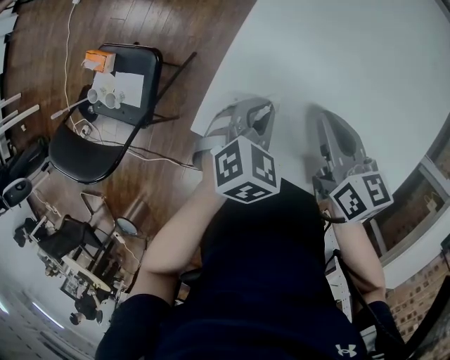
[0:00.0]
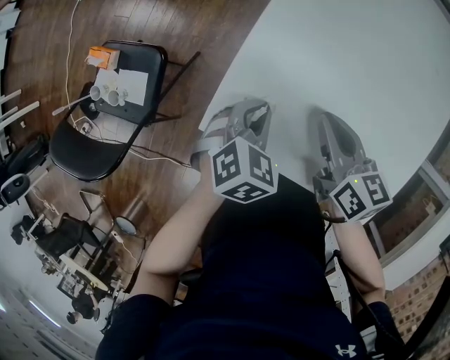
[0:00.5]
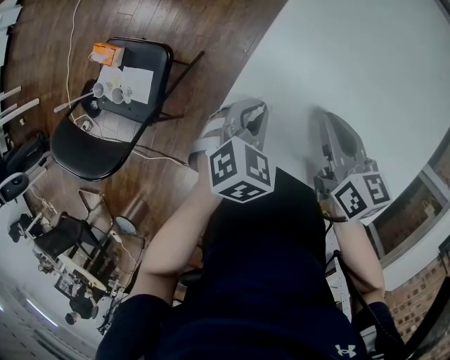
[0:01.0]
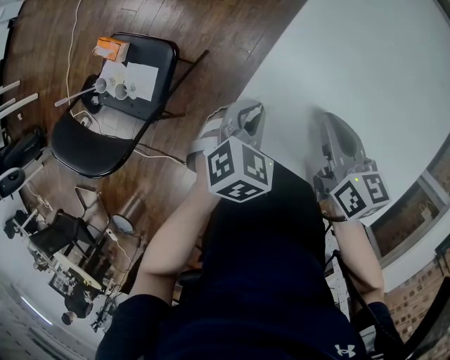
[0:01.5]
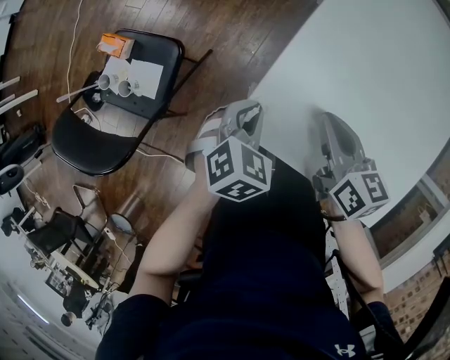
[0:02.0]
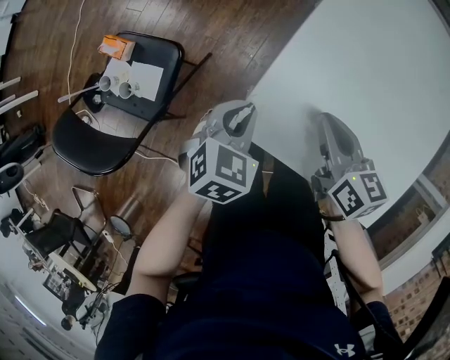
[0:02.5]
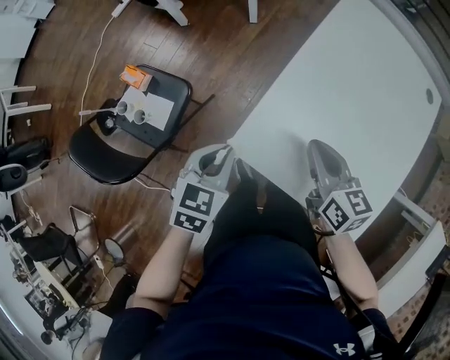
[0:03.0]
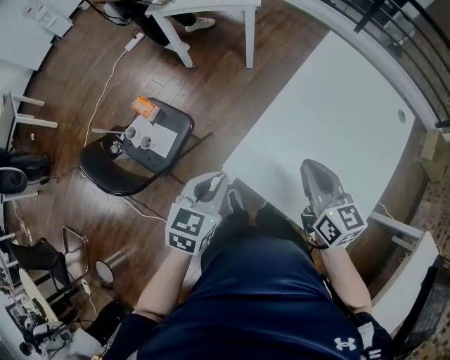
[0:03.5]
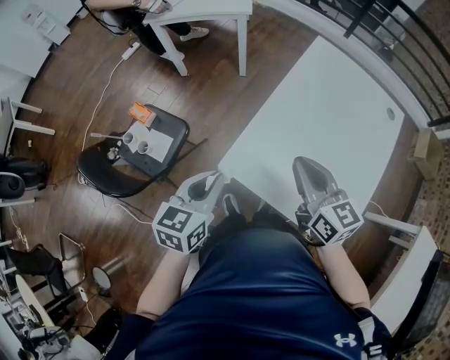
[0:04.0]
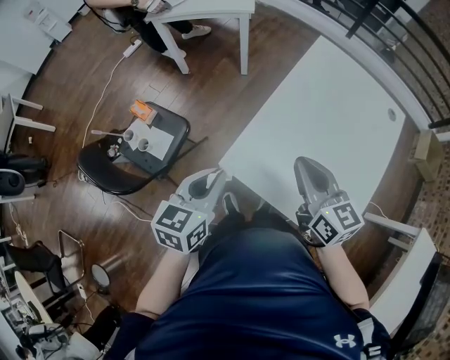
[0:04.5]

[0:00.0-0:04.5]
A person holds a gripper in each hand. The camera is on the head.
0:00.0 to 0:02.0: The grippers both shift to the left by some 10 cm.
0:02.0 to 0:04.5: Both grippers move upward, some 20 cm. The right gripper changes its angle by roughly 30 degrees. Meanwhile the left gripper angles its fingers upward, by about 30 degrees.

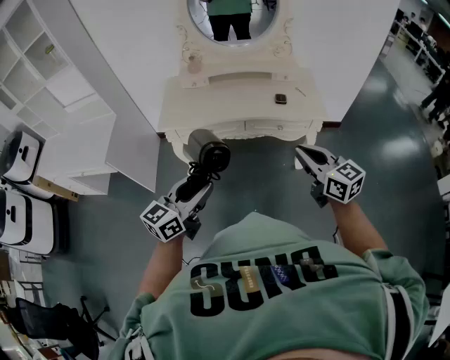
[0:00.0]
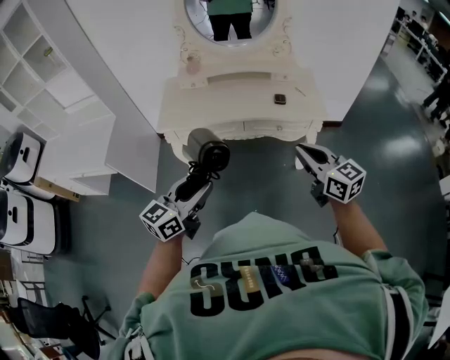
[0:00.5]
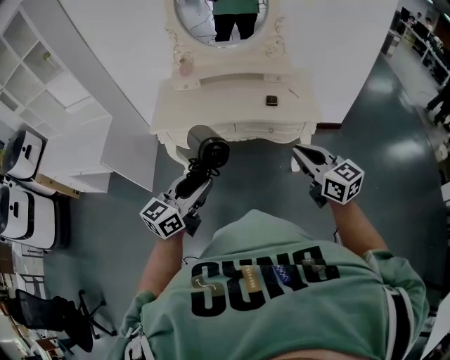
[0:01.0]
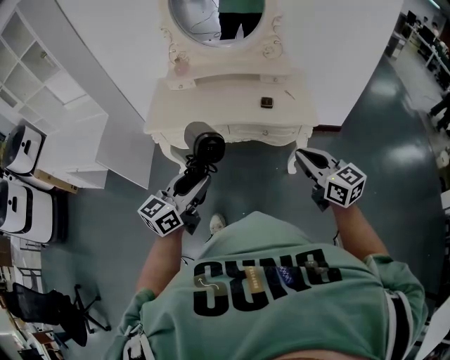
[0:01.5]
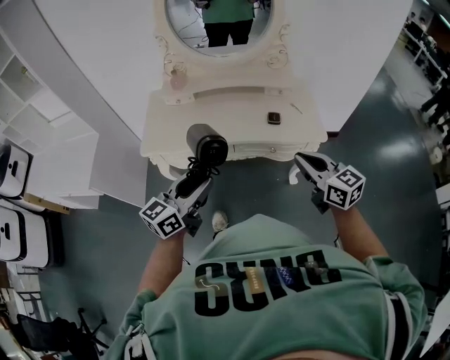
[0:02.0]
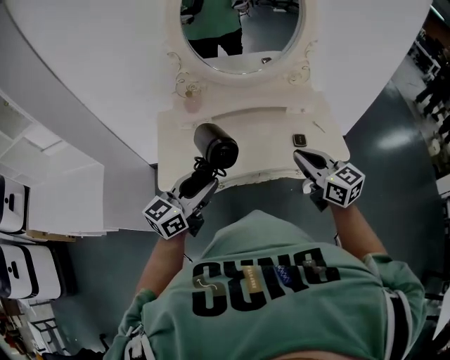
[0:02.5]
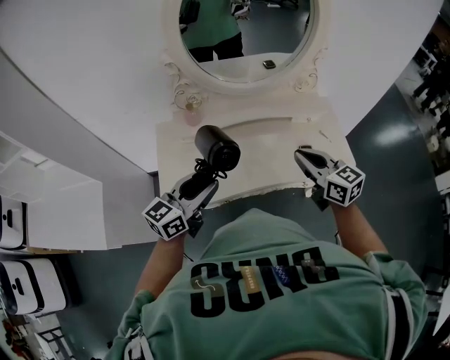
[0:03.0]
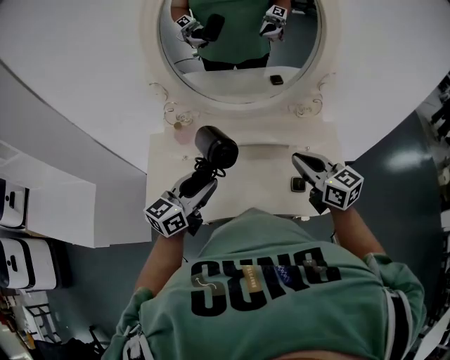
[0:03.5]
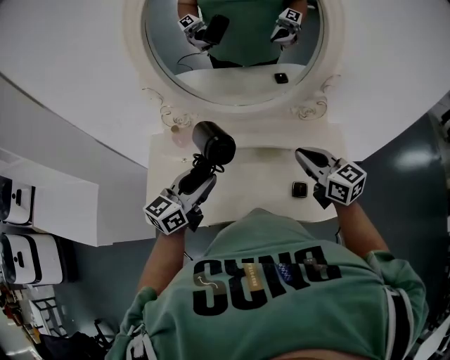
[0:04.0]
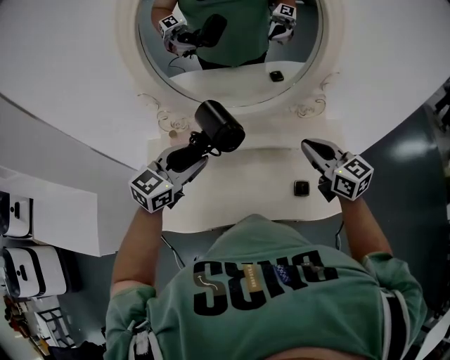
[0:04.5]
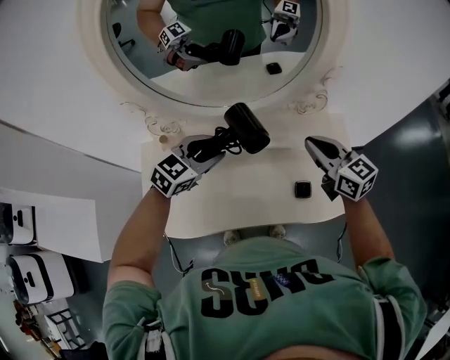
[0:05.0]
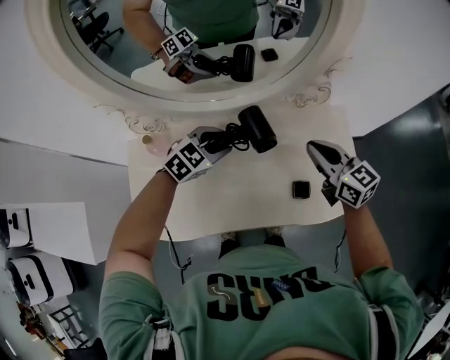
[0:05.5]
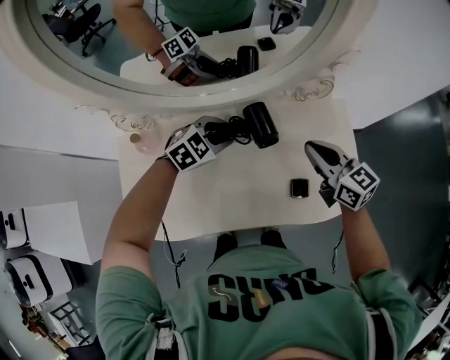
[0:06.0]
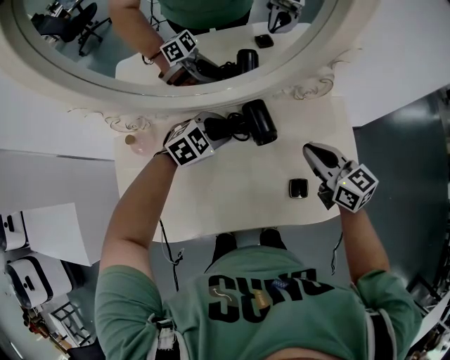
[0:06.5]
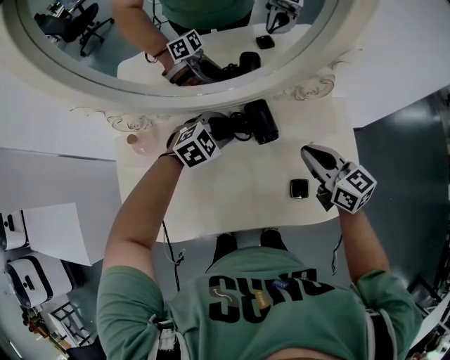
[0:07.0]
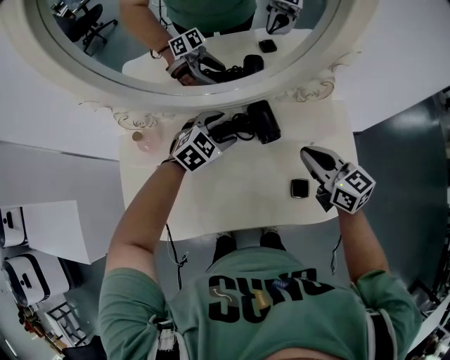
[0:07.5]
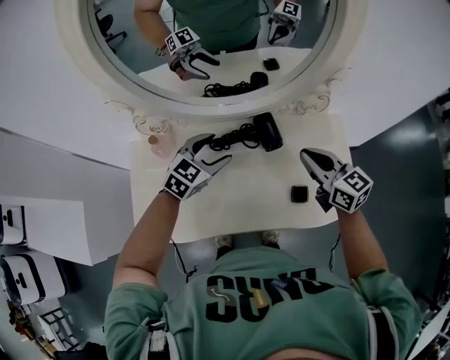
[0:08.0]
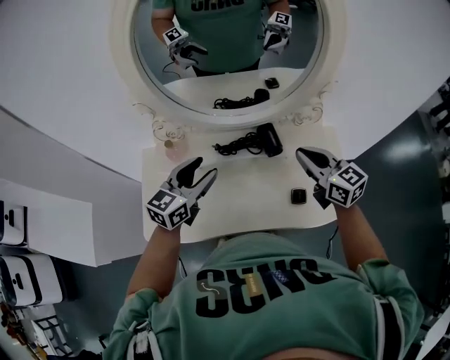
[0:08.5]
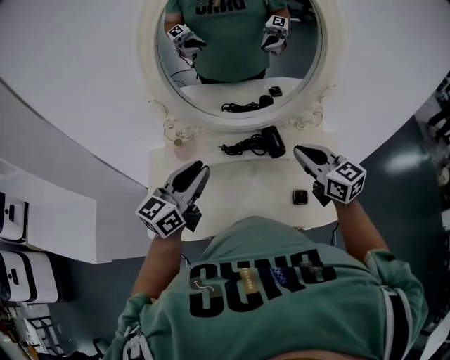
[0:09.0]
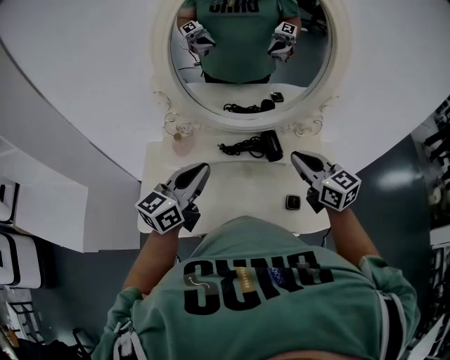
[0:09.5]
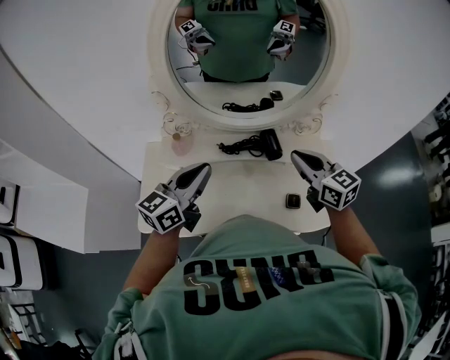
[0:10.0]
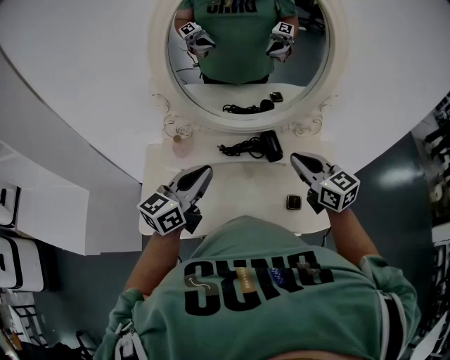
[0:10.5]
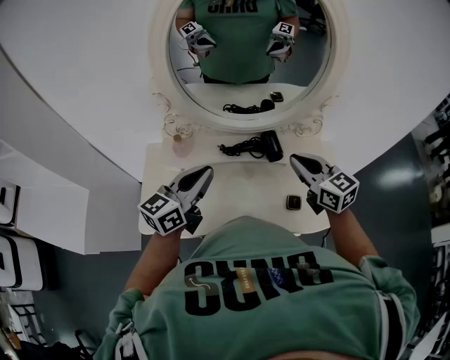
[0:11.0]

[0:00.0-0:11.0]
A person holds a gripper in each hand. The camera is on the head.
0:00.0 to 0:02.0: Both grippers travel together forward, about 15 cm.
0:02.0 to 0:03.5: The grippers both shift forward by roughly 35 cm.
0:03.5 to 0:05.5: The right gripper is displaced forward, downward and to the right by roughly 15 cm. Meanwhile the left gripper is displaced forward, downward and to the right by roughly 30 cm, and angles its fingers downward, by some 40 degrees.
0:05.5 to 0:07.5: The left gripper is displaced downward by some 5 cm, and opens.
0:07.5 to 0:09.0: The left gripper shifts about 35 cm upward, backward and to the left, tips its fingers upward by roughly 50 degrees, and closes up, while the right gripper shifts approximately 15 cm upward and to the left.
0:09.0 to 0:11.0: The grippers make only small movements.

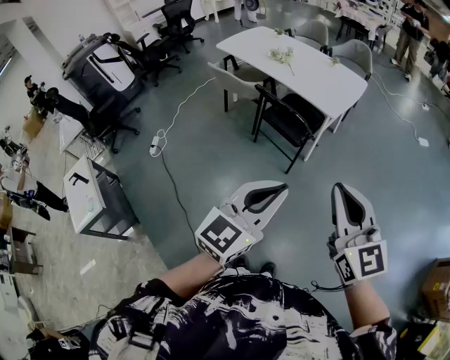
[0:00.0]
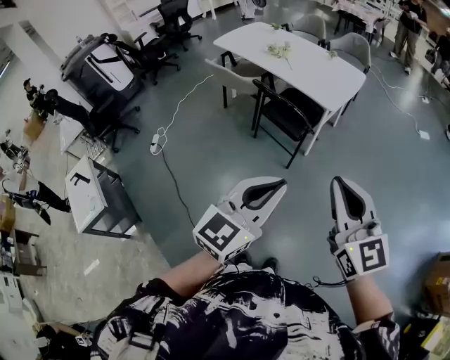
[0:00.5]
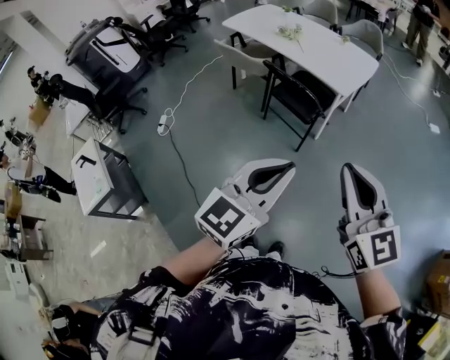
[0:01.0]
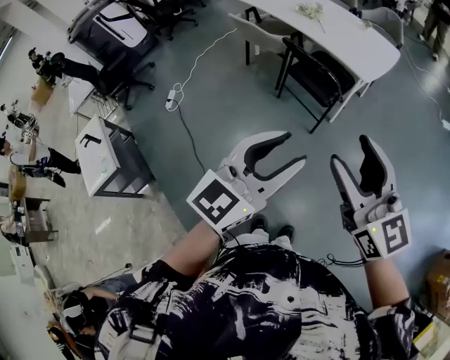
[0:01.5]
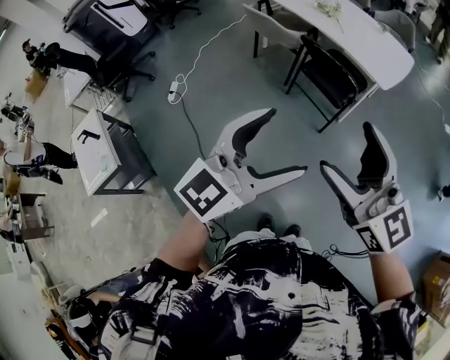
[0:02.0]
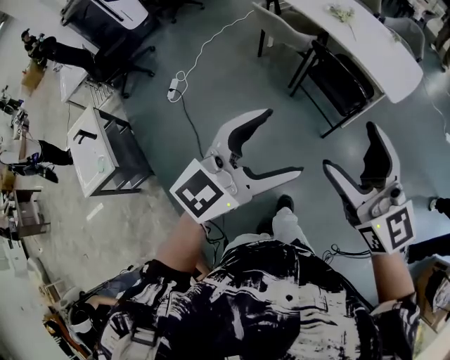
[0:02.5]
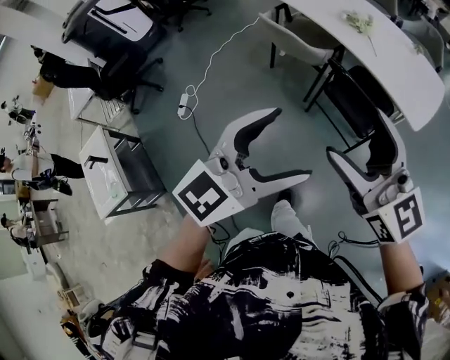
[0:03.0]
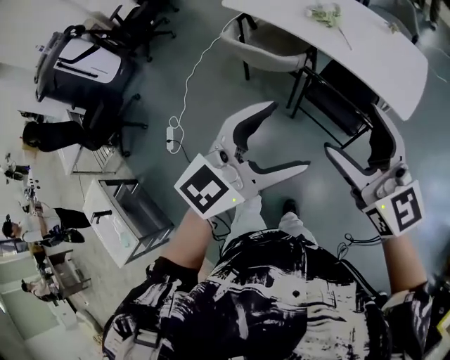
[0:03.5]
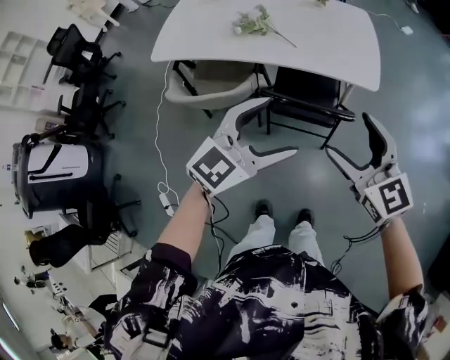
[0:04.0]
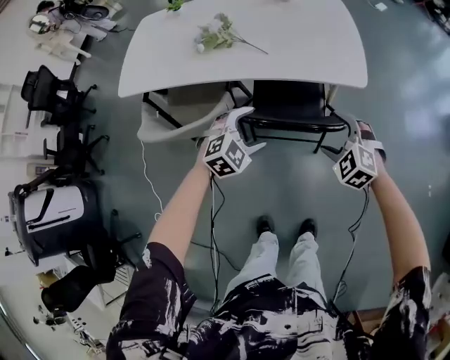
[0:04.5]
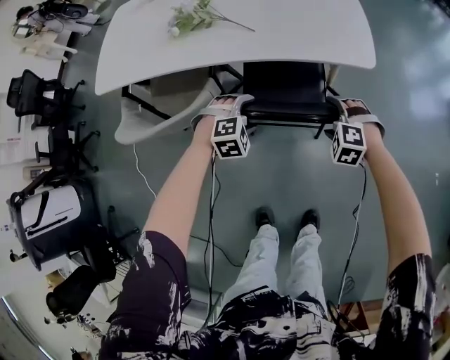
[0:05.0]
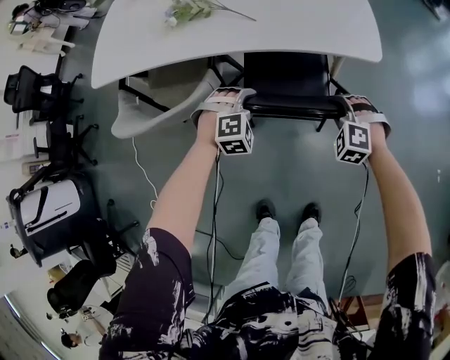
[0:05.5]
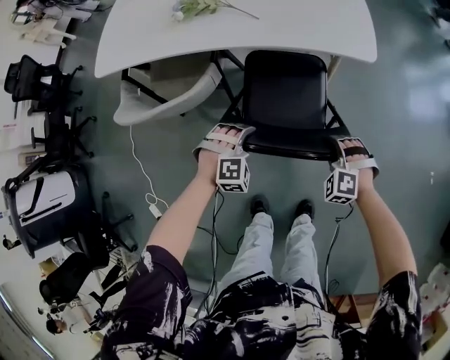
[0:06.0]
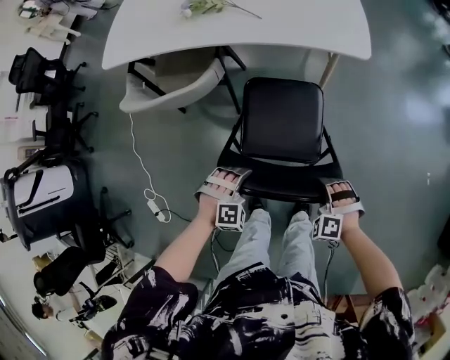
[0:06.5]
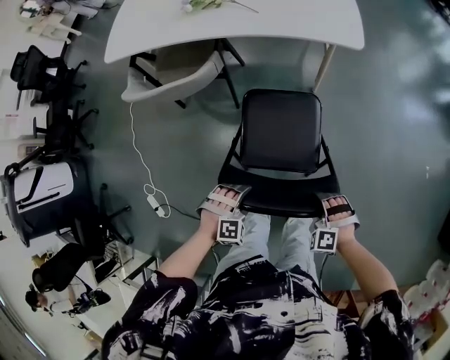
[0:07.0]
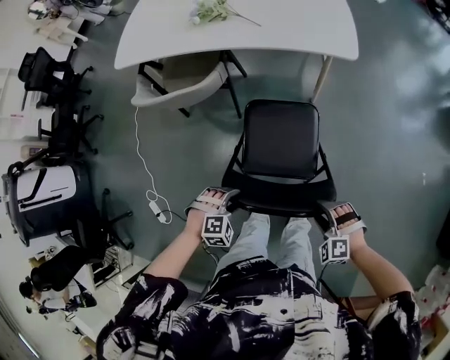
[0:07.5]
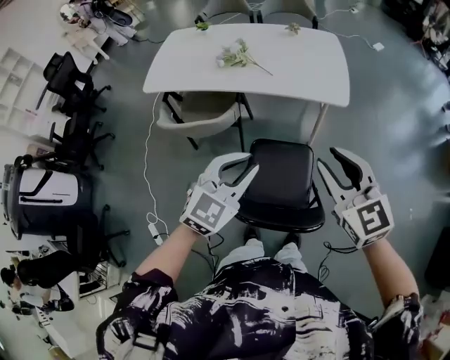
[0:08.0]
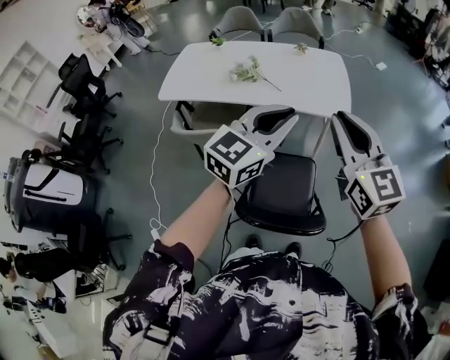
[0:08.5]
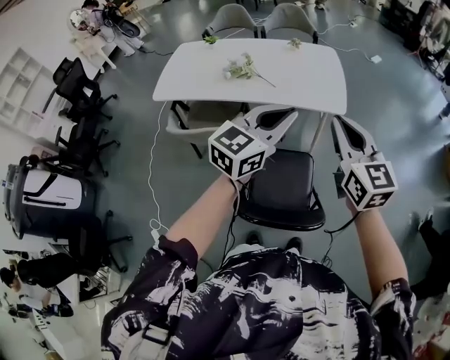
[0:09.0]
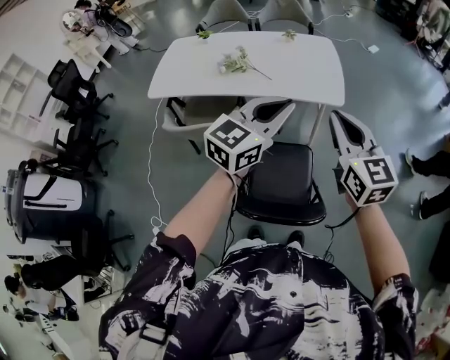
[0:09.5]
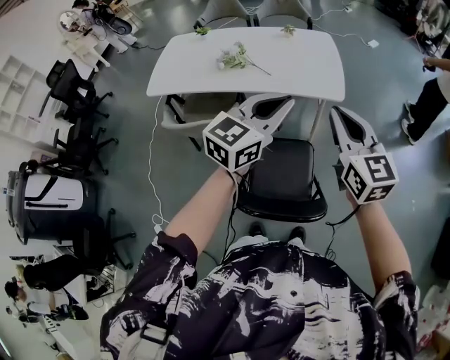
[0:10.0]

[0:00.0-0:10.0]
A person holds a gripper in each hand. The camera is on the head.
0:00.0 to 0:02.0: The grippers both shift to the left by roughly 20 cm. The right gripper turns by about 20 degrees, and opens; the left gripper opens.
0:02.0 to 0:04.0: The pair of grippers is taken roughly 50 cm. The right gripper changes its angle by about 40 degrees, while the left gripper changes its angle by about 40 degrees.
0:04.0 to 0:06.0: The two grippers go about 40 cm downward. The left gripper tips its fingers downward by approximately 40 degrees, and closes up. Meanwhile the right gripper tips its fingers downward by approximately 40 degrees, and closes.
0:06.0 to 0:08.0: Both grippers travel together upward, some 40 cm. The left gripper tilts its fingers roughly 30 degrees upward. The right gripper tips its fingers upward by about 40 degrees.
0:08.0 to 0:10.0: The left gripper heads upward, forward and to the right, covering approximately 15 cm, and turns by roughly 30 degrees. The right gripper travels upward by roughly 5 cm.

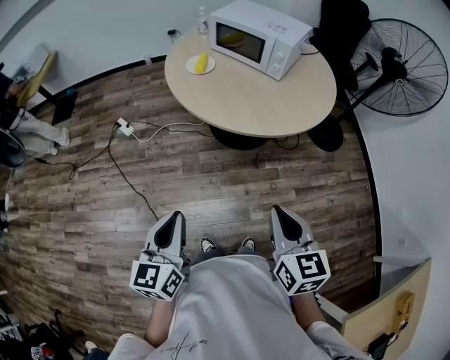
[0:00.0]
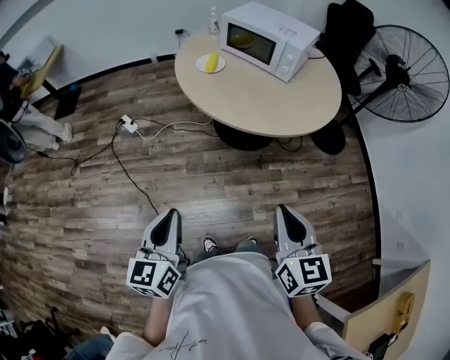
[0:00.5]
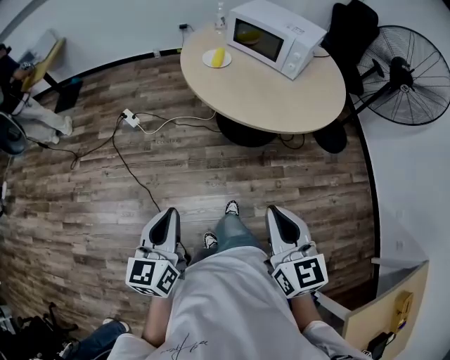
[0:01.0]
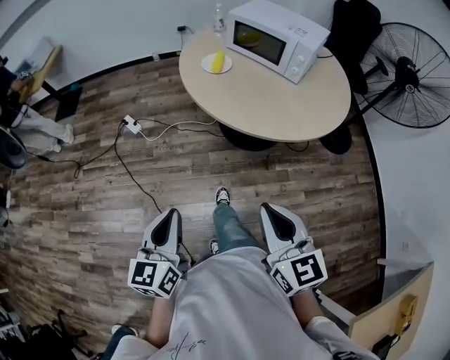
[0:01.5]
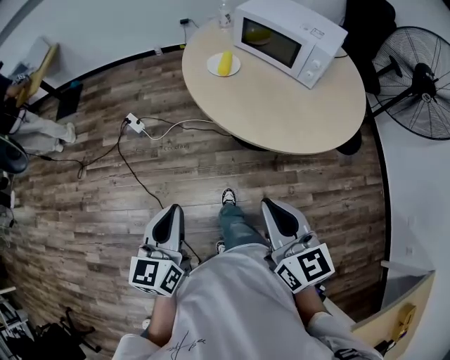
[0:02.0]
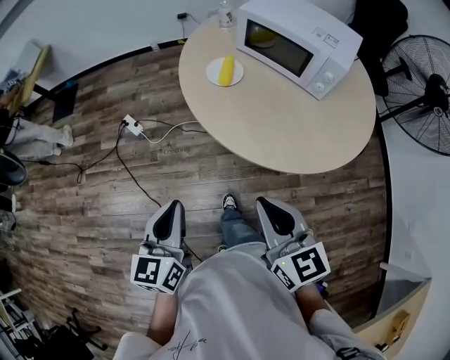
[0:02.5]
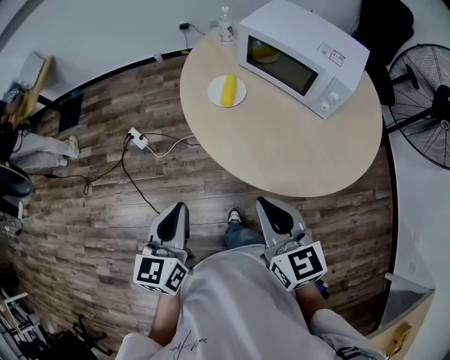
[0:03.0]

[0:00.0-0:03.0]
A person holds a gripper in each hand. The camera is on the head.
0:00.0 to 0:01.5: Both grippers travel together to the left, roughly 10 cm.
0:01.5 to 0:03.0: Both grippers move forward, roughly 30 cm.
